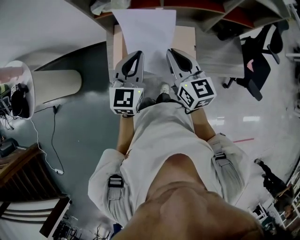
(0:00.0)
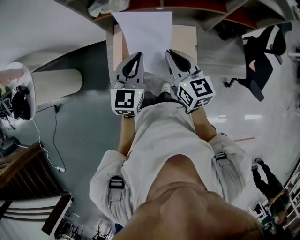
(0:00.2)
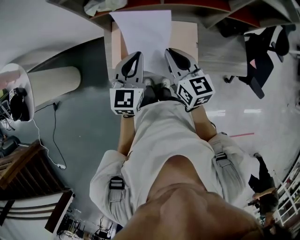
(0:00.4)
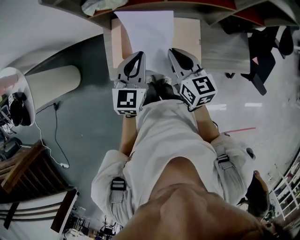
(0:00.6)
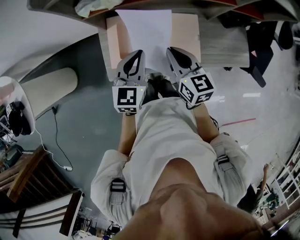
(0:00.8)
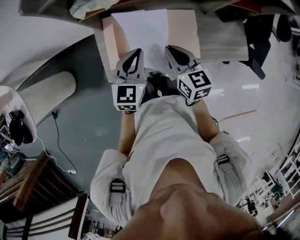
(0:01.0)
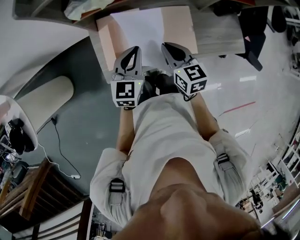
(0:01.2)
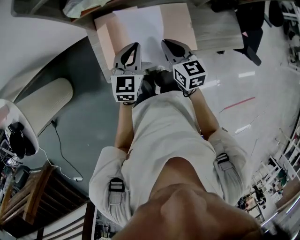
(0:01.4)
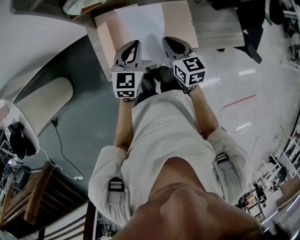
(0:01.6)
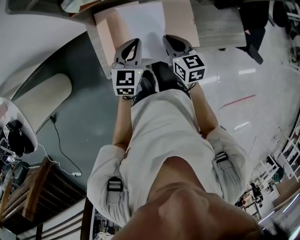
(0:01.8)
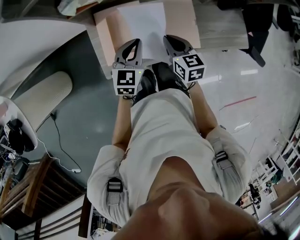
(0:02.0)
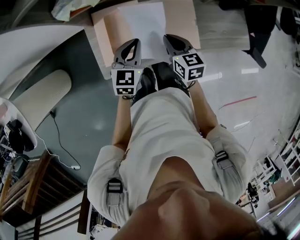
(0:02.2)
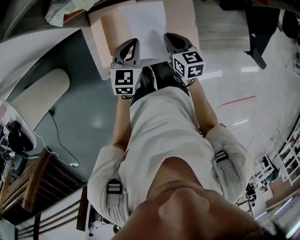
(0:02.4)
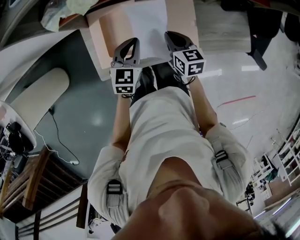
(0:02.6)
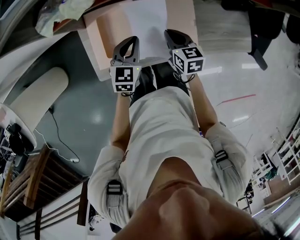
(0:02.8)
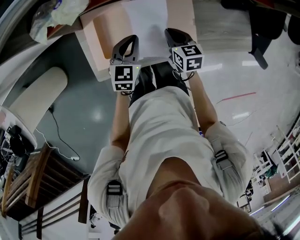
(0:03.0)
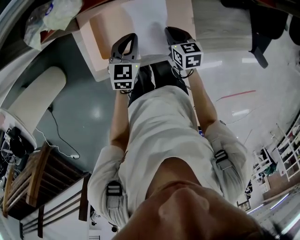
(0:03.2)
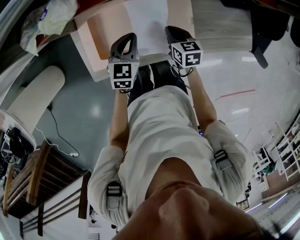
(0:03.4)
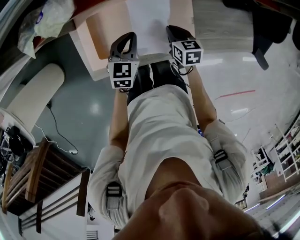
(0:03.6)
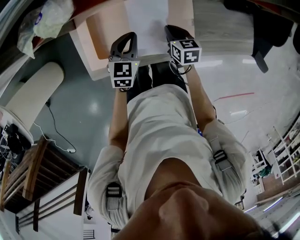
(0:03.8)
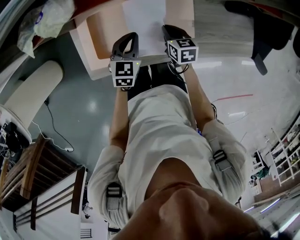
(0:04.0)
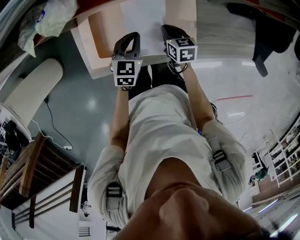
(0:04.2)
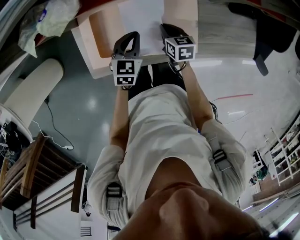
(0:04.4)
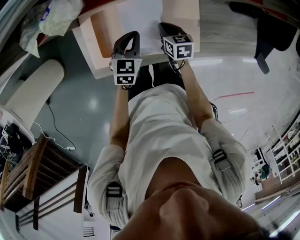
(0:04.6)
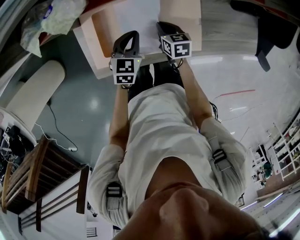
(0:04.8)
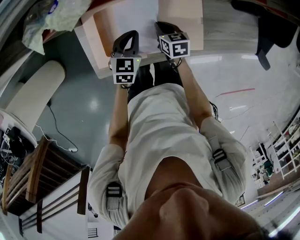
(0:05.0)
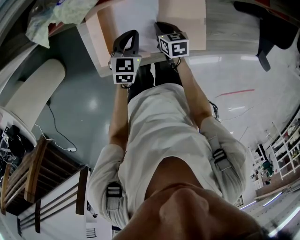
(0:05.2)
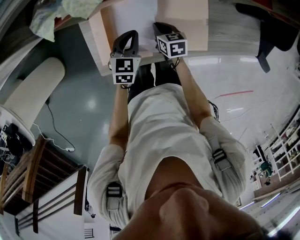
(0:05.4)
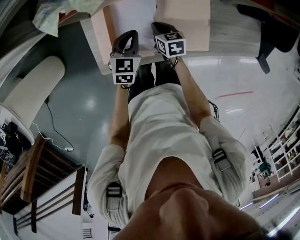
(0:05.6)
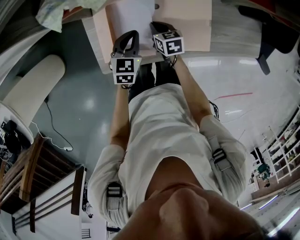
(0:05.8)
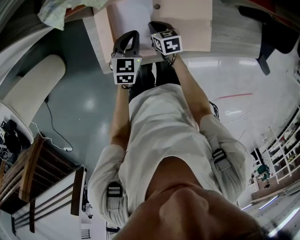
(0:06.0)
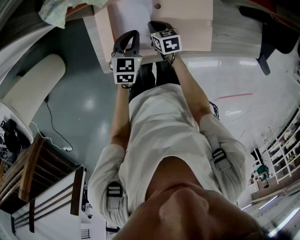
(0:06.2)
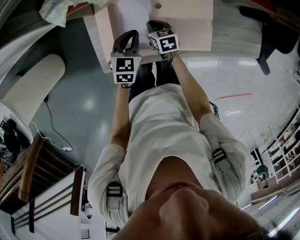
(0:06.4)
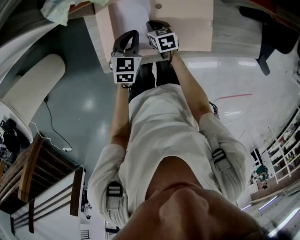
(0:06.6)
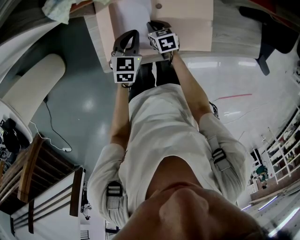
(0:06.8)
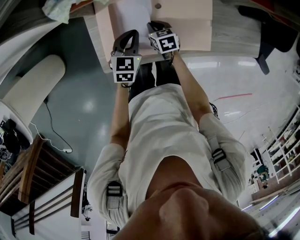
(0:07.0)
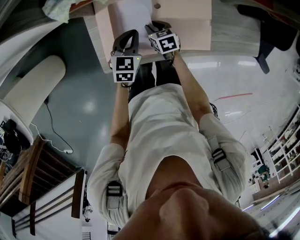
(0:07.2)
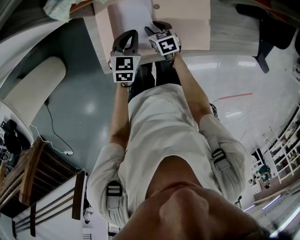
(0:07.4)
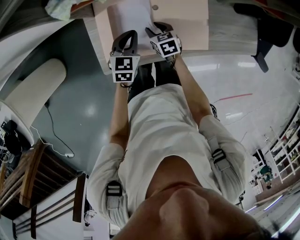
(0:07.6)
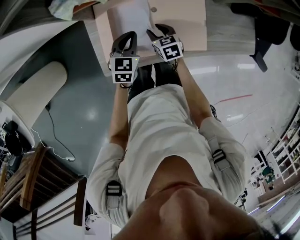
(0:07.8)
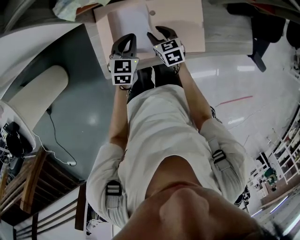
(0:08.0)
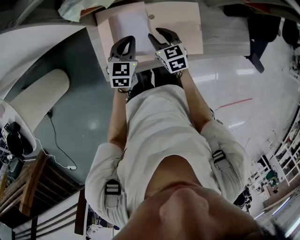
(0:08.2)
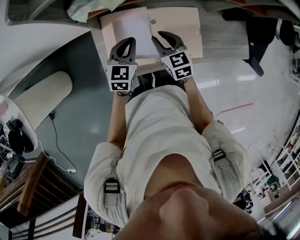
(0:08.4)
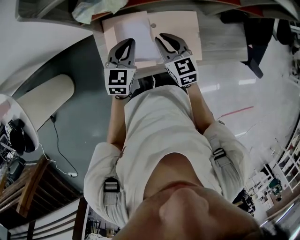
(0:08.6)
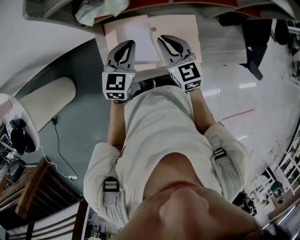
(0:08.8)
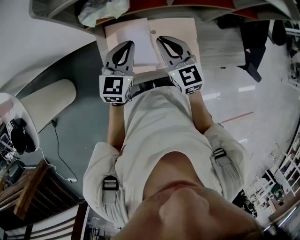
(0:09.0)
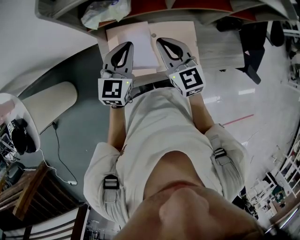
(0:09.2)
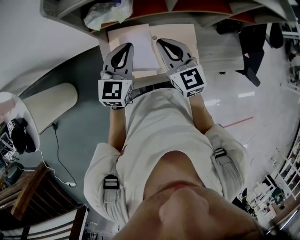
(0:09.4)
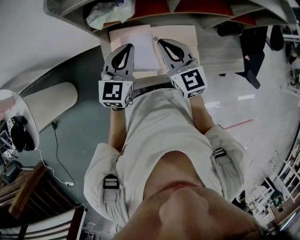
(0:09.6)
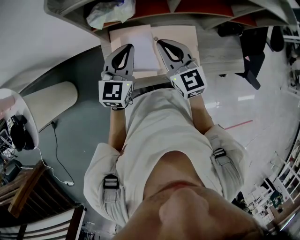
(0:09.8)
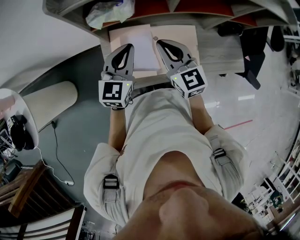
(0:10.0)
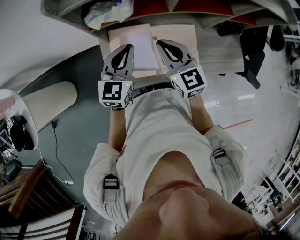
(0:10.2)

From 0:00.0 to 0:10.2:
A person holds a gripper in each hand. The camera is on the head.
From 0:00.0 to 0:01.4: The right gripper heads downward, covering approximately 15 cm, and rotates roughly 20 degrees. The left gripper travels downward and forward by approximately 15 cm.
From 0:01.4 to 0:03.0: The right gripper travels downward, to the right and forward by about 15 cm. The left gripper goes roughly 15 cm downward, forward and to the right.
From 0:03.0 to 0:04.4: The left gripper goes roughly 5 cm downward. Meanwhile the right gripper heads downward, covering some 10 cm.
From 0:04.4 to 0:05.8: Both grippers travel together to the left, approximately 10 cm.
From 0:05.8 to 0:07.2: The right gripper opens up.
From 0:07.2 to 0:08.8: The right gripper goes some 30 cm upward, and tips its fingers upward by approximately 30 degrees. The left gripper goes some 20 cm upward.
From 0:08.8 to 0:10.2: Both grippers travel together upward, some 5 cm.

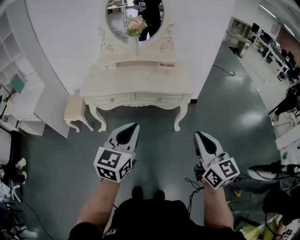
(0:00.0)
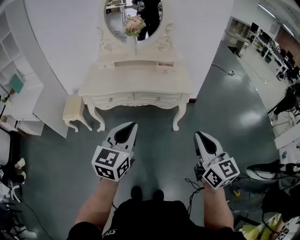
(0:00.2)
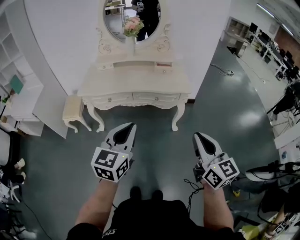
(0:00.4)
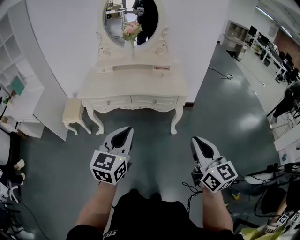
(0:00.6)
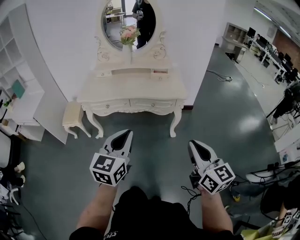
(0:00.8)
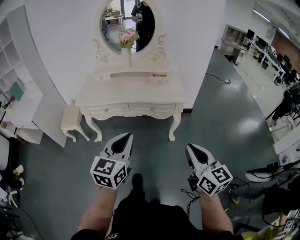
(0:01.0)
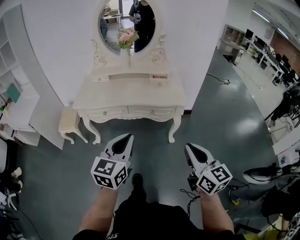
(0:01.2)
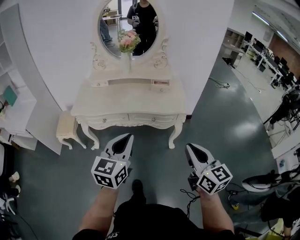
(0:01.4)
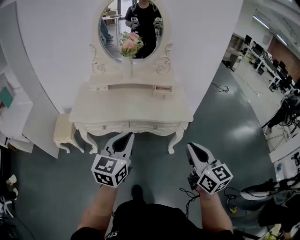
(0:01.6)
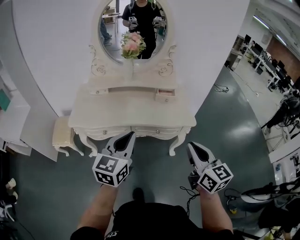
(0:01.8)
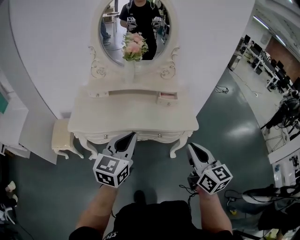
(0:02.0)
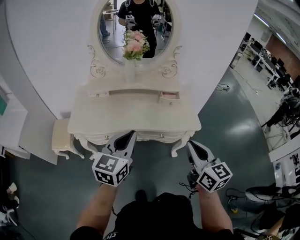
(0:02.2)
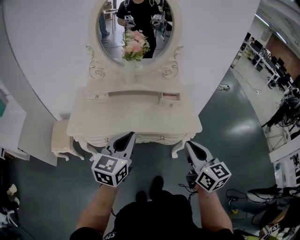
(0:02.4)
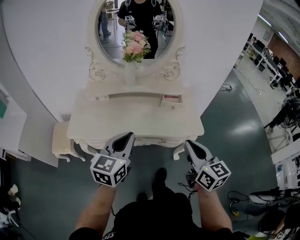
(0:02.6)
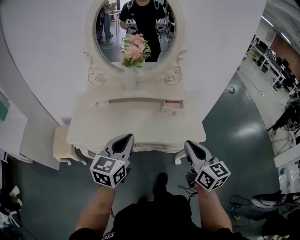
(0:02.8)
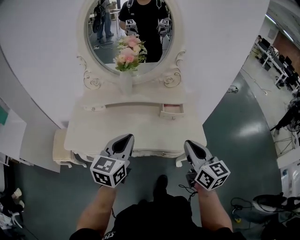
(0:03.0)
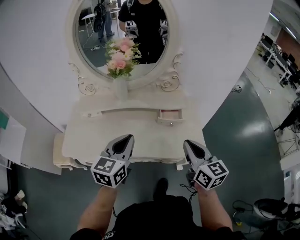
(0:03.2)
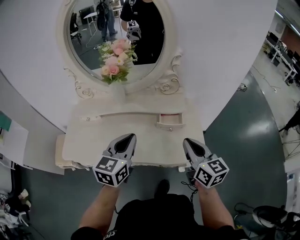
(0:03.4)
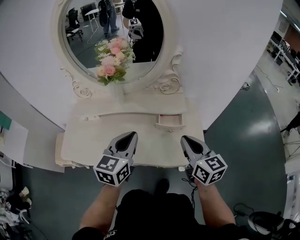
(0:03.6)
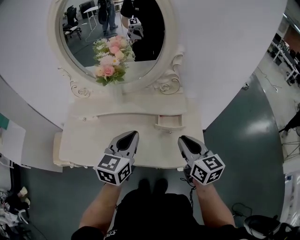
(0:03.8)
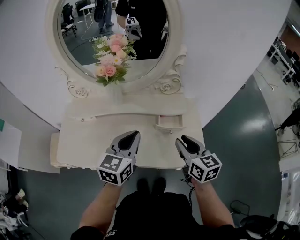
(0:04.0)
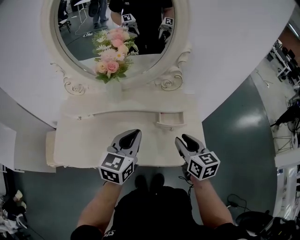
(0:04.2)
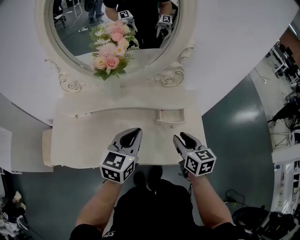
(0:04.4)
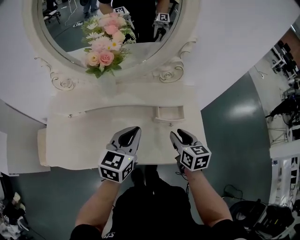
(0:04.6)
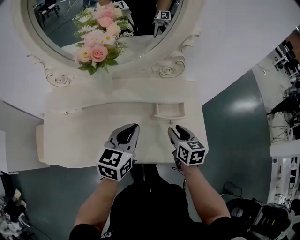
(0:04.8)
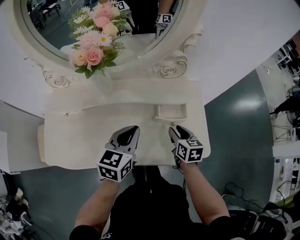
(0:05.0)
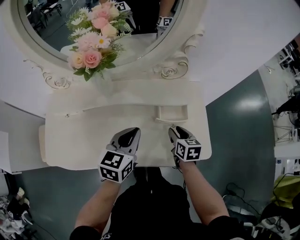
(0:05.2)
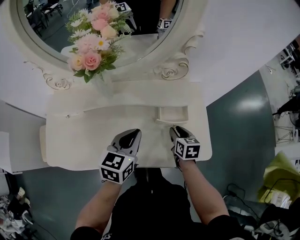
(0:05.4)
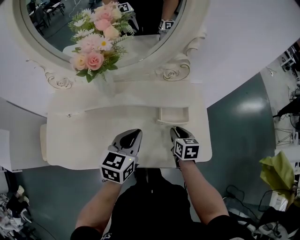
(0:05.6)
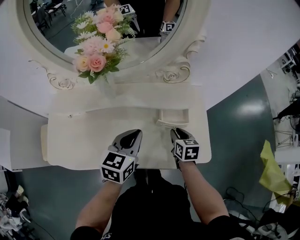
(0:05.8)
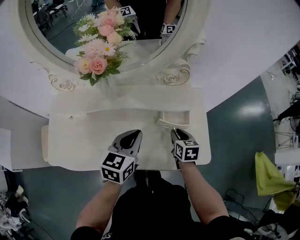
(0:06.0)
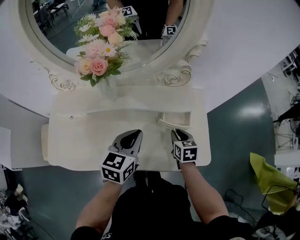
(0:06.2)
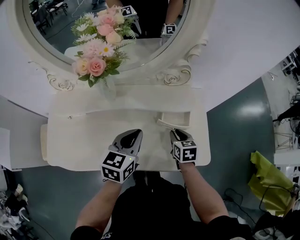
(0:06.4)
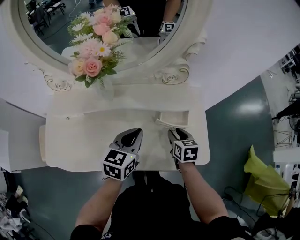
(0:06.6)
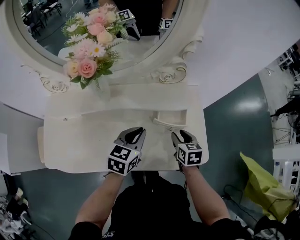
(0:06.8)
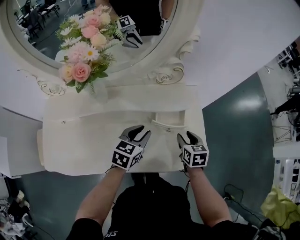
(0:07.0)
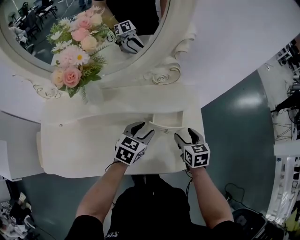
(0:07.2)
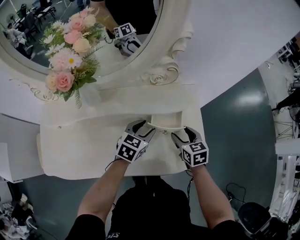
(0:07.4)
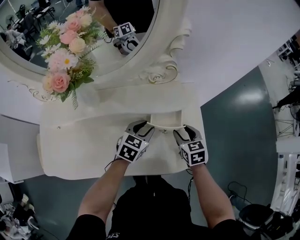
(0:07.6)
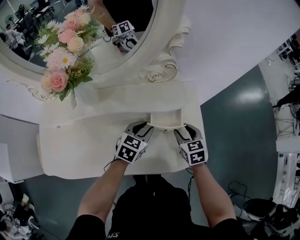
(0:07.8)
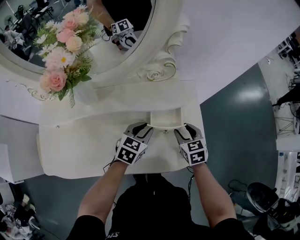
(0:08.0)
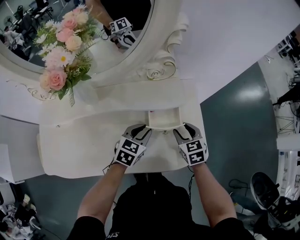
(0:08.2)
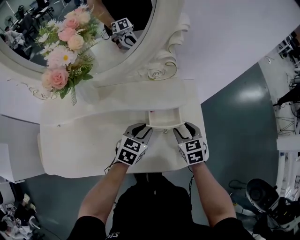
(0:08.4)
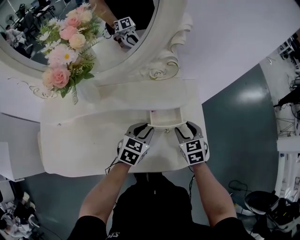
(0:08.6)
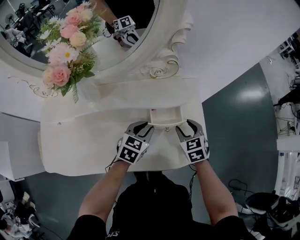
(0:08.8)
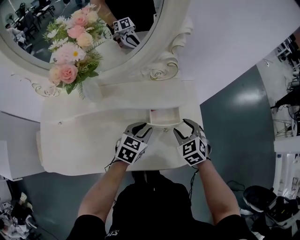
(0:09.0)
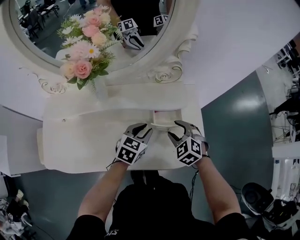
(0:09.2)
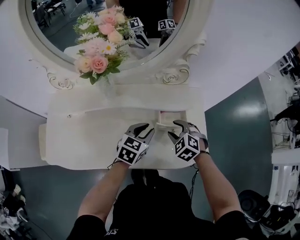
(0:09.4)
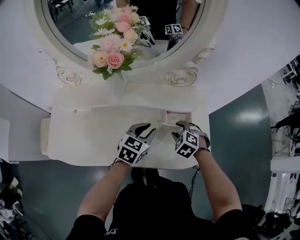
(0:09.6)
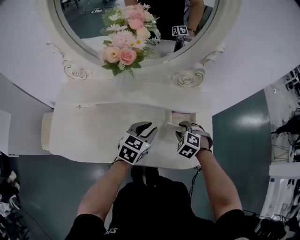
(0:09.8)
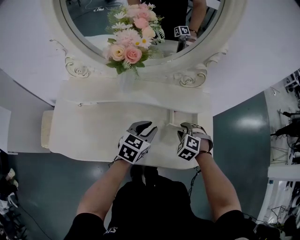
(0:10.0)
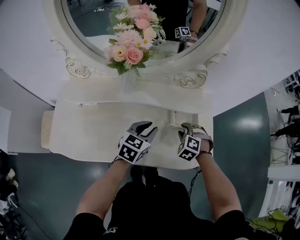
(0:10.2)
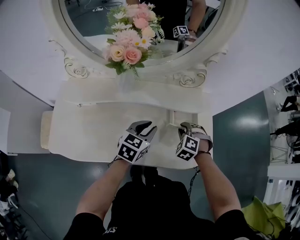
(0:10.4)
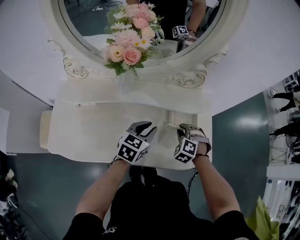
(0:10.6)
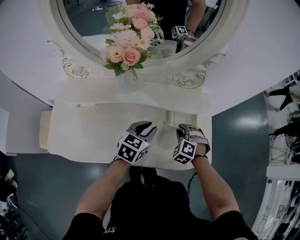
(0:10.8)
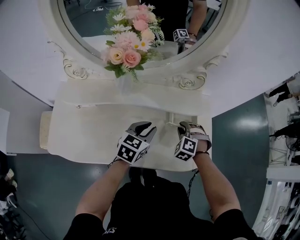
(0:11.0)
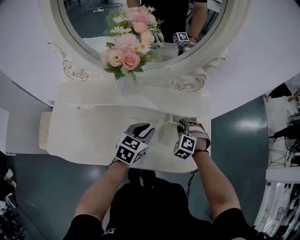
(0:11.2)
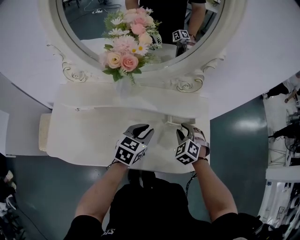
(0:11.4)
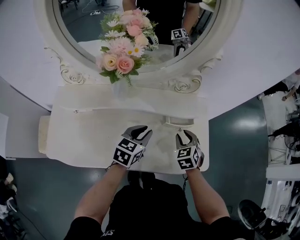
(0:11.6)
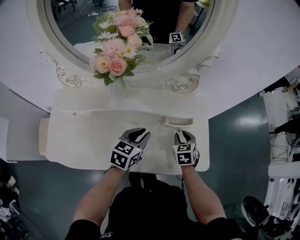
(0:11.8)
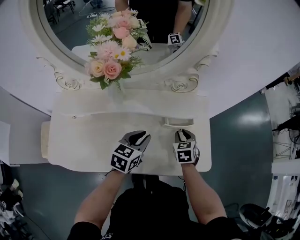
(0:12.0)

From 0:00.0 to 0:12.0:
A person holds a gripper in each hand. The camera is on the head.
From 0:00.0 to 0:01.6: Both grippers travel together forward, roughly 15 cm.
From 0:01.6 to 0:03.0: The grippers both shift forward by about 25 cm.
From 0:03.0 to 0:04.4: The right gripper is displaced forward and downward by about 25 cm, rotates about 20 degrees, and opens its fingers, while the left gripper moves forward, roughly 15 cm.
From 0:04.4 to 0:06.0: The right gripper shifts some 15 cm downward and forward, while the left gripper moves downward, approximately 5 cm.
From 0:06.0 to 0:07.6: The left gripper is displaced downward, forward and to the right by some 20 cm, turns by approximately 20 degrees, and opens up; the right gripper travels to the right by some 5 cm, and opens up.
From 0:07.6 to 0:09.0: The right gripper swivels roughly 30 degrees.
From 0:09.0 to 0:10.4: The right gripper heads to the left, covering about 5 cm, rotates some 40 degrees, and closes up; the left gripper moves to the left and upward, approximately 10 cm.
From 0:10.4 to 0:12.0: The right gripper rotates around the line of its fingers by some 60 degrees, clockwise from behind.

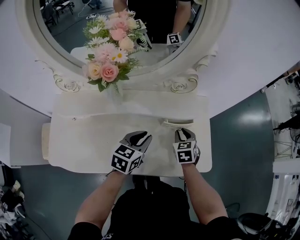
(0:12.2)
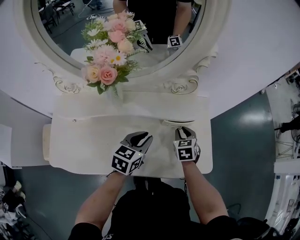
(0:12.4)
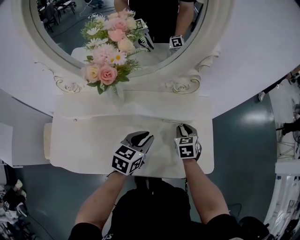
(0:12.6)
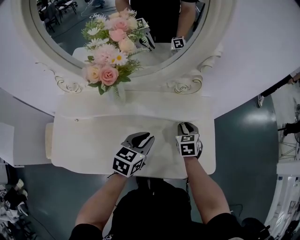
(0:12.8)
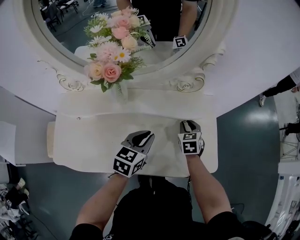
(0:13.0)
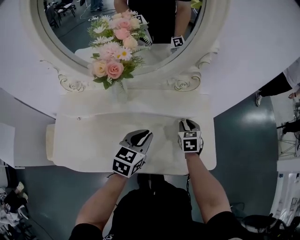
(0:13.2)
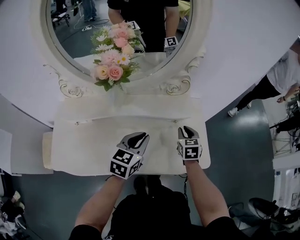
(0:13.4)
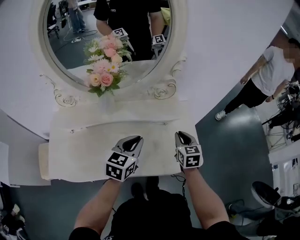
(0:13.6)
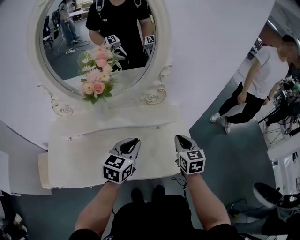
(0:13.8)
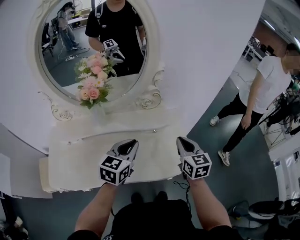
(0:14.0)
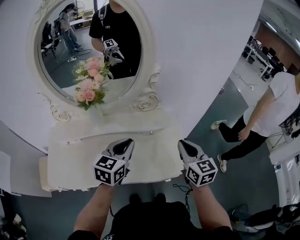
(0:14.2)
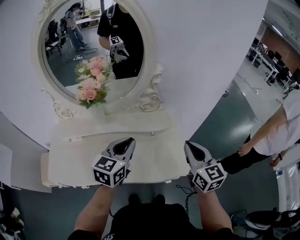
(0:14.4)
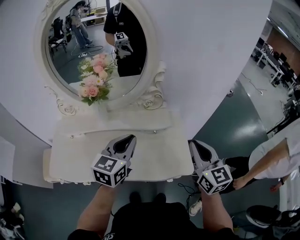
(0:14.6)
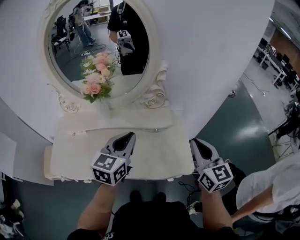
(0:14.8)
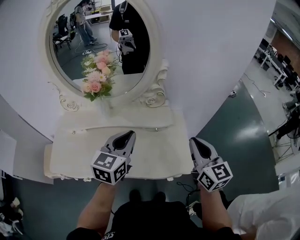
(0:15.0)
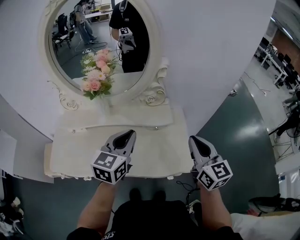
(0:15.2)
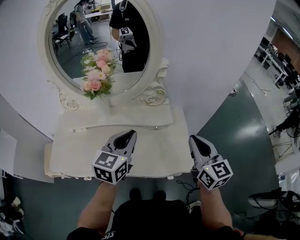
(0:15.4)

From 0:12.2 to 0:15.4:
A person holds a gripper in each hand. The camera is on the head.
From 0:12.2 to 0:13.8: The two grippers go about 15 cm upward. The right gripper swivels approximately 20 degrees.
From 0:13.8 to 0:15.4: The left gripper moves upward, some 10 cm. The right gripper moves upward and to the right, roughly 15 cm, and rotates roughly 30 degrees.
